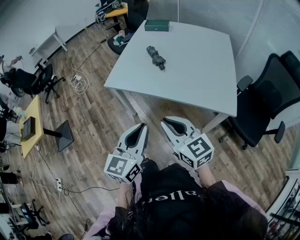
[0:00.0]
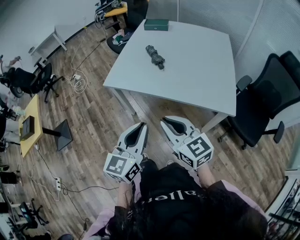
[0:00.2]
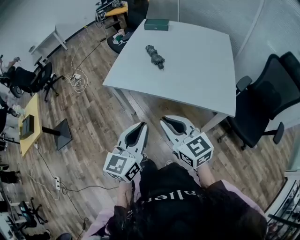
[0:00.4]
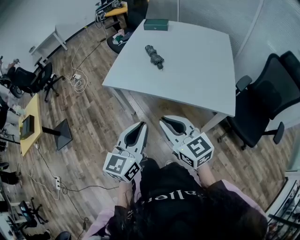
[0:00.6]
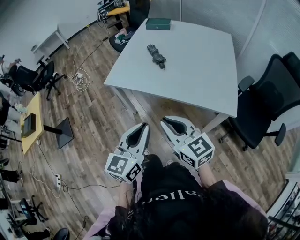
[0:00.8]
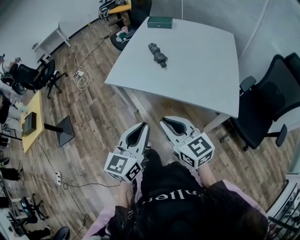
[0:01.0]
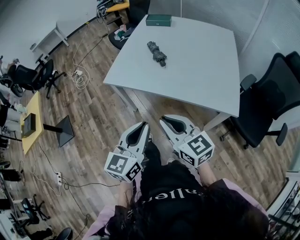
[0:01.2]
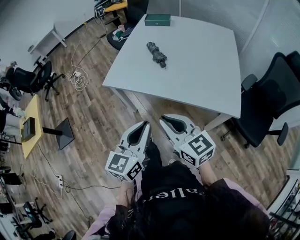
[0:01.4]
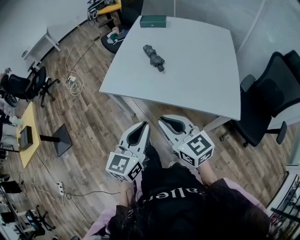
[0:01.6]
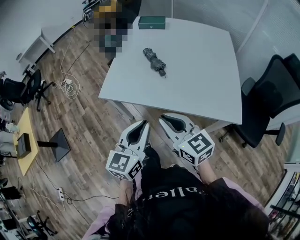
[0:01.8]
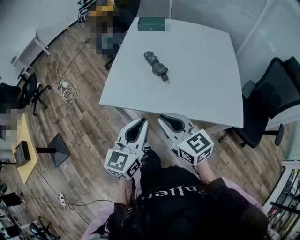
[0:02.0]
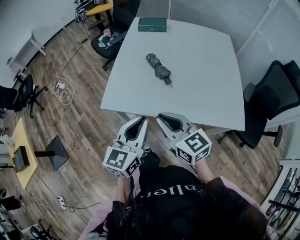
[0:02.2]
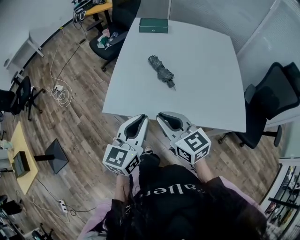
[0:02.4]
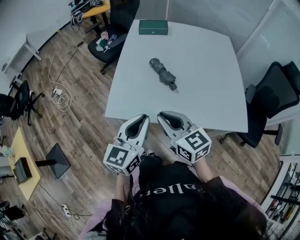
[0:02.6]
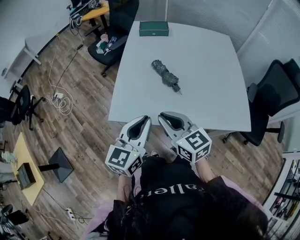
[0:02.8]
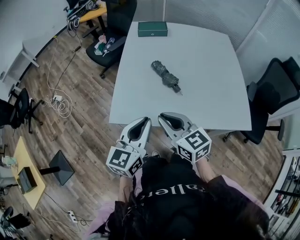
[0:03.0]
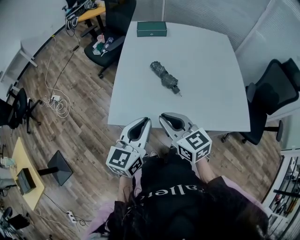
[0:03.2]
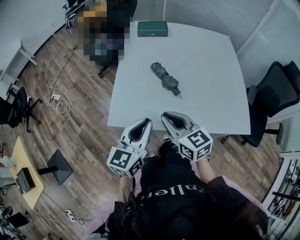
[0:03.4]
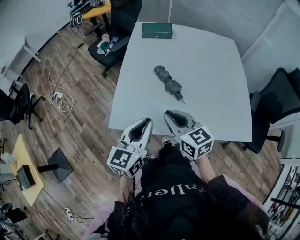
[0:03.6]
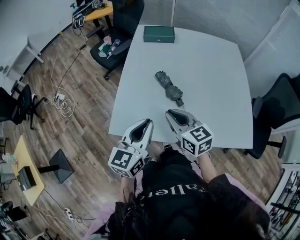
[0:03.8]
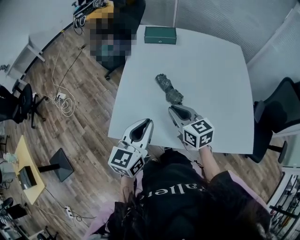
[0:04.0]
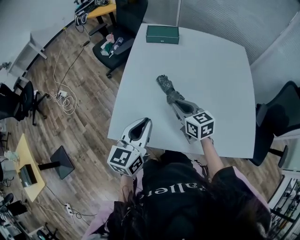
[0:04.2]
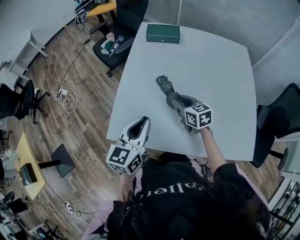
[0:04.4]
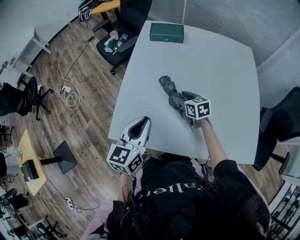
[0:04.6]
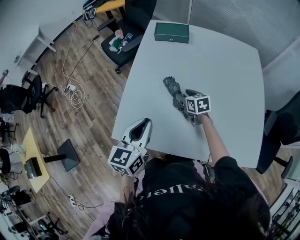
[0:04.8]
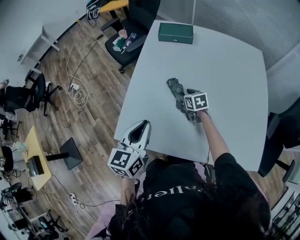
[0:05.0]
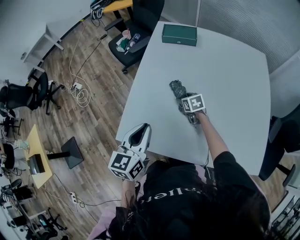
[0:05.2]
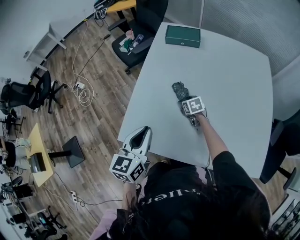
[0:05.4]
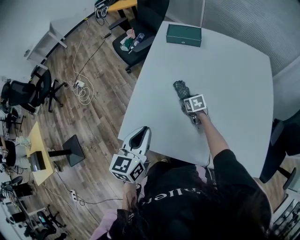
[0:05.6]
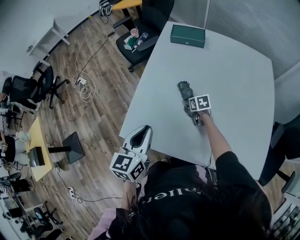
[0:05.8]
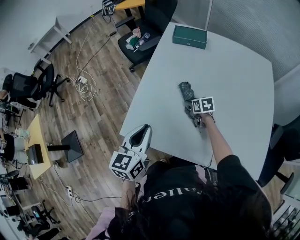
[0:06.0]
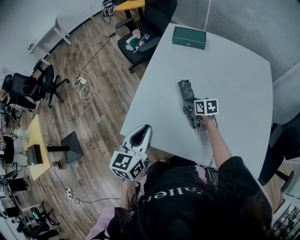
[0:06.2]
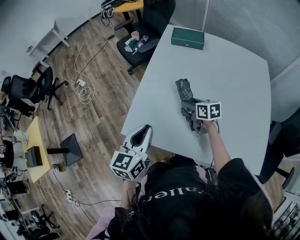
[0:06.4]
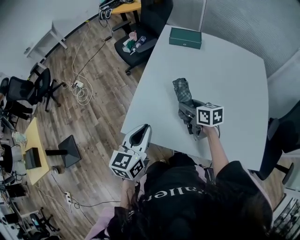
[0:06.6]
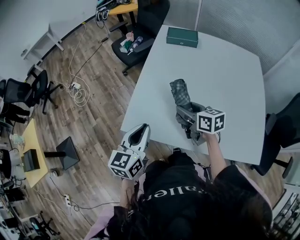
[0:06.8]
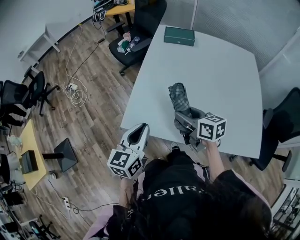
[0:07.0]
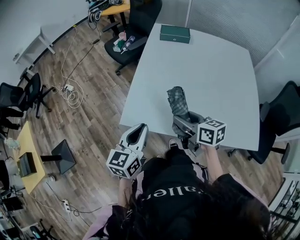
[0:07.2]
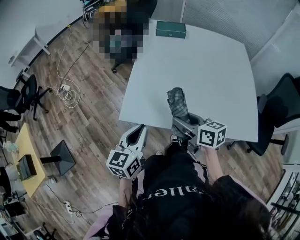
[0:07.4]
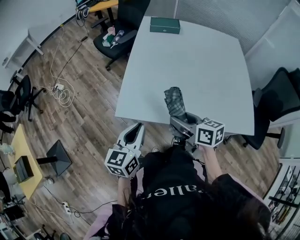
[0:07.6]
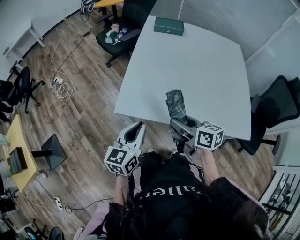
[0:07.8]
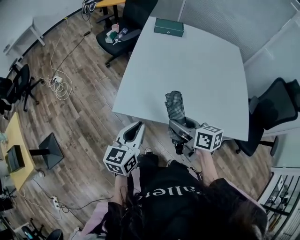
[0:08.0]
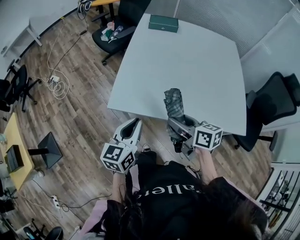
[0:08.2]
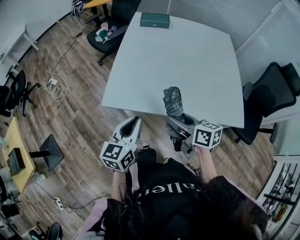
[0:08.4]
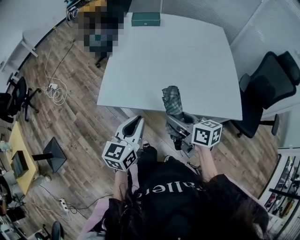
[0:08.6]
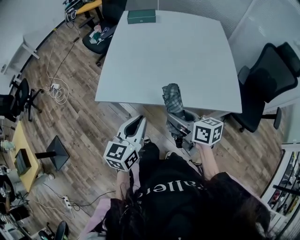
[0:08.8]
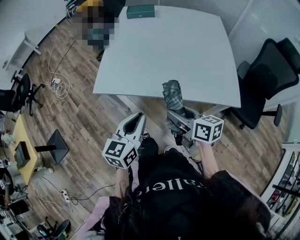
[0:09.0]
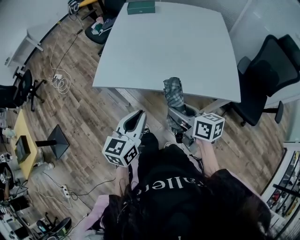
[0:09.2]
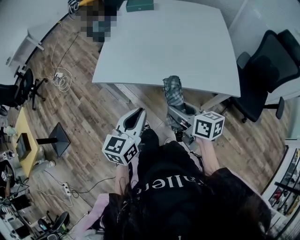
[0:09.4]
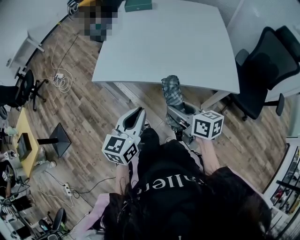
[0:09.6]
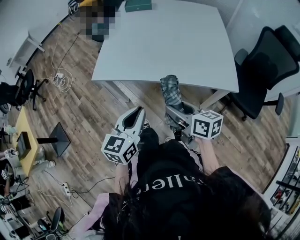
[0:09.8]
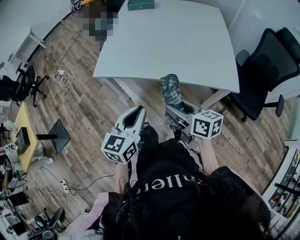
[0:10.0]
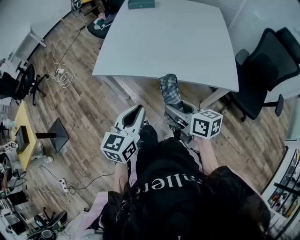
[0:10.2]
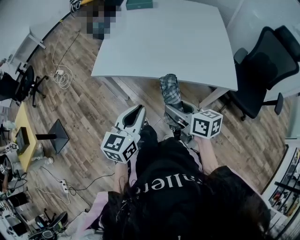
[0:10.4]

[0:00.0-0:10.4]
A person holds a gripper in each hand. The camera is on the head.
0:00.0 to 0:01.4: The grippers make only small movements.
0:01.4 to 0:03.0: The grippers both shift forward and to the left by roughly 30 cm.
0:03.0 to 0:04.4: The left gripper is displaced forward by approximately 15 cm, while the right gripper is displaced forward, downward and to the right by roughly 30 cm.
0:04.4 to 0:06.0: The left gripper travels to the left by about 5 cm. The right gripper moves downward and forward, roughly 15 cm, turns by some 20 degrees, and opens.
0:06.0 to 0:07.4: The left gripper shifts some 15 cm backward and to the left; the right gripper shifts roughly 35 cm backward, upward and to the left, and turns by roughly 30 degrees.
0:07.4 to 0:09.0: The grippers both shift backward and to the right by about 25 cm.
0:09.0 to 0:10.4: Both grippers travel together backward, some 10 cm.

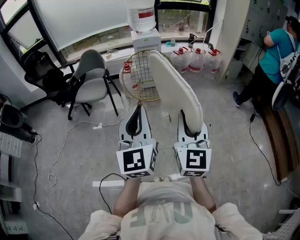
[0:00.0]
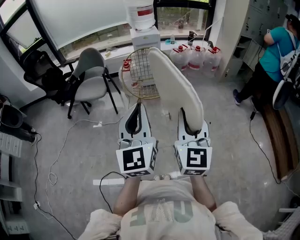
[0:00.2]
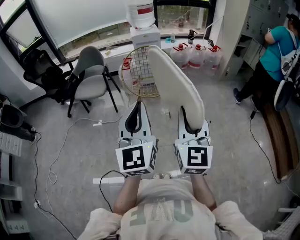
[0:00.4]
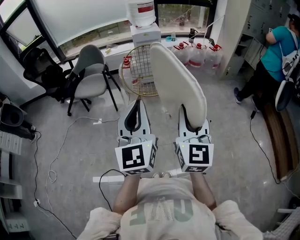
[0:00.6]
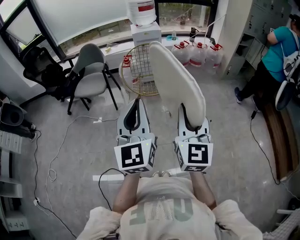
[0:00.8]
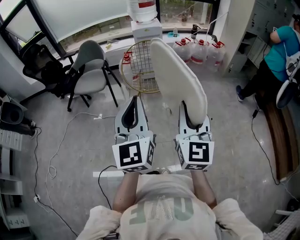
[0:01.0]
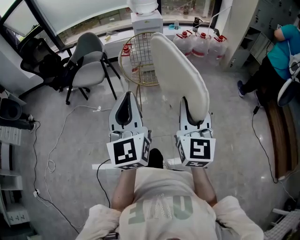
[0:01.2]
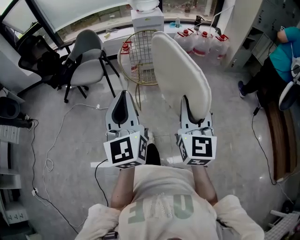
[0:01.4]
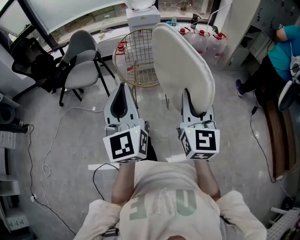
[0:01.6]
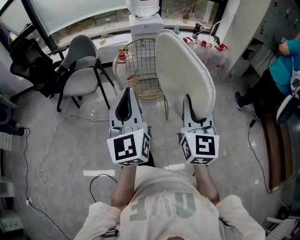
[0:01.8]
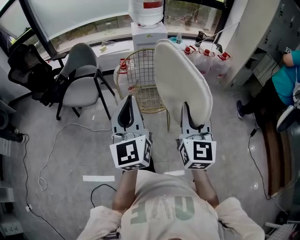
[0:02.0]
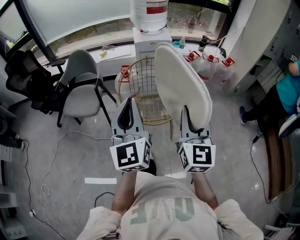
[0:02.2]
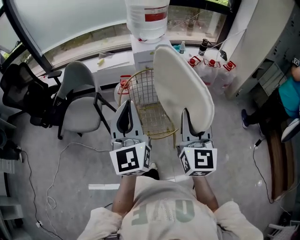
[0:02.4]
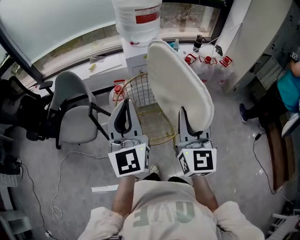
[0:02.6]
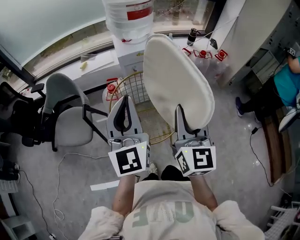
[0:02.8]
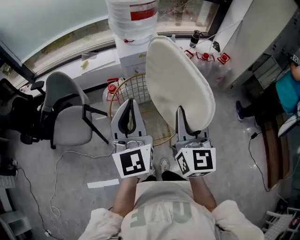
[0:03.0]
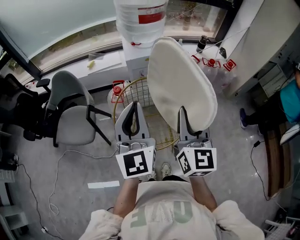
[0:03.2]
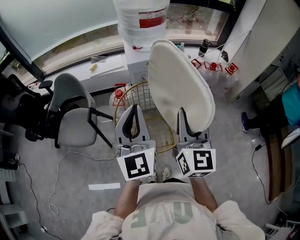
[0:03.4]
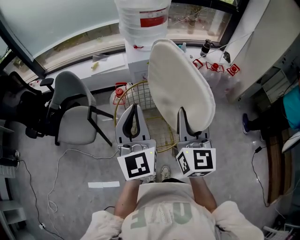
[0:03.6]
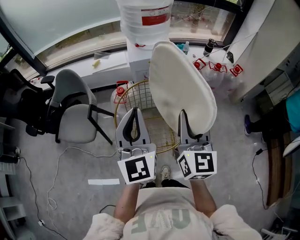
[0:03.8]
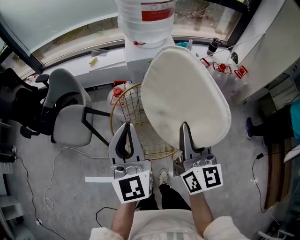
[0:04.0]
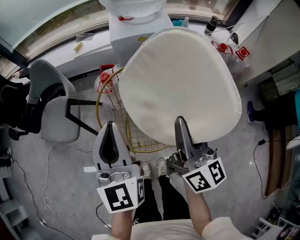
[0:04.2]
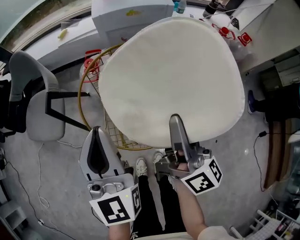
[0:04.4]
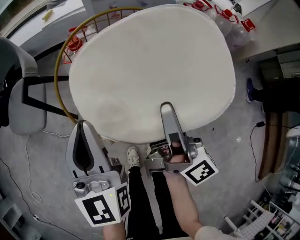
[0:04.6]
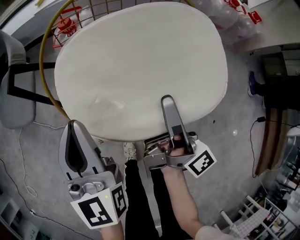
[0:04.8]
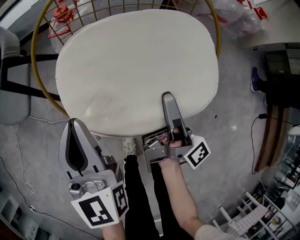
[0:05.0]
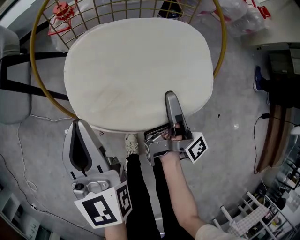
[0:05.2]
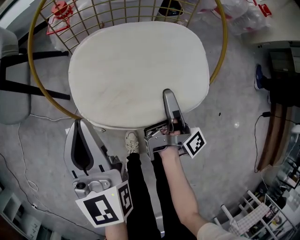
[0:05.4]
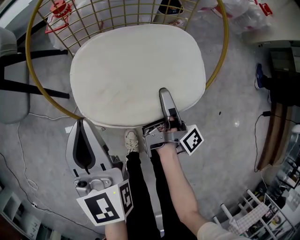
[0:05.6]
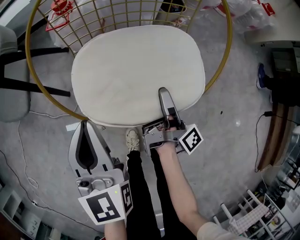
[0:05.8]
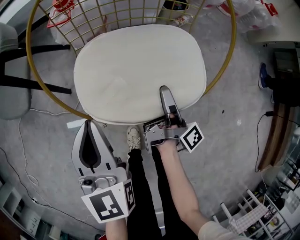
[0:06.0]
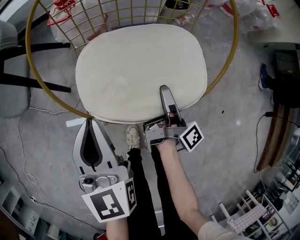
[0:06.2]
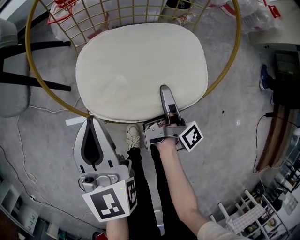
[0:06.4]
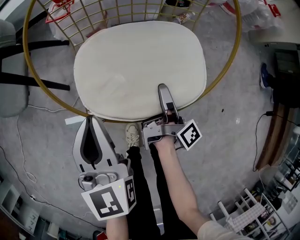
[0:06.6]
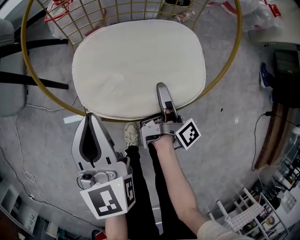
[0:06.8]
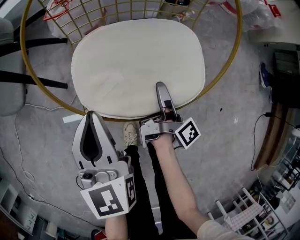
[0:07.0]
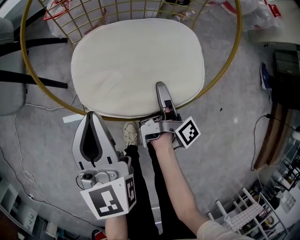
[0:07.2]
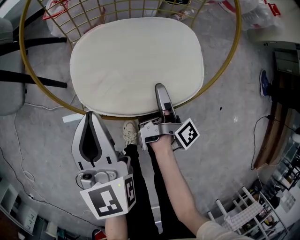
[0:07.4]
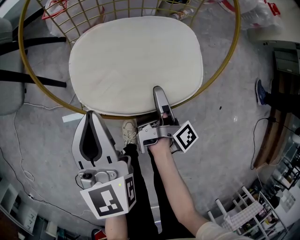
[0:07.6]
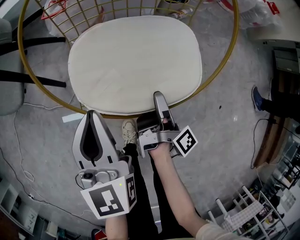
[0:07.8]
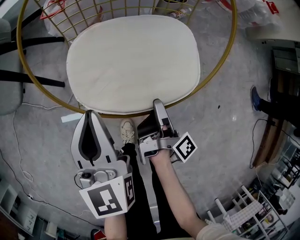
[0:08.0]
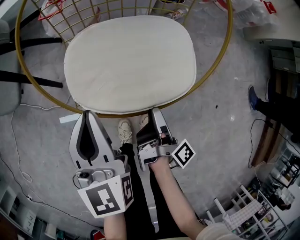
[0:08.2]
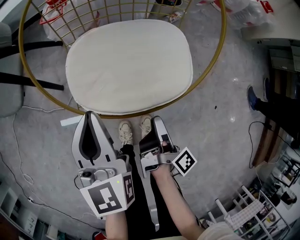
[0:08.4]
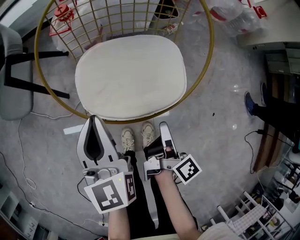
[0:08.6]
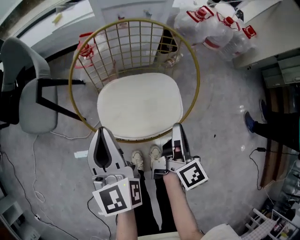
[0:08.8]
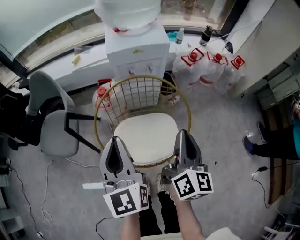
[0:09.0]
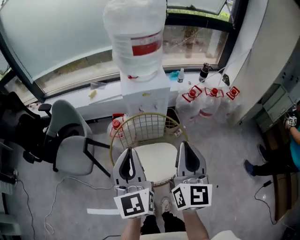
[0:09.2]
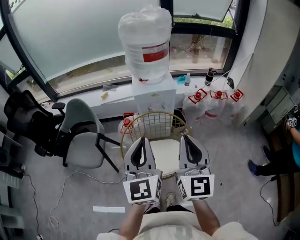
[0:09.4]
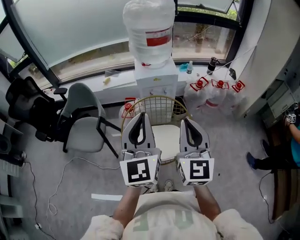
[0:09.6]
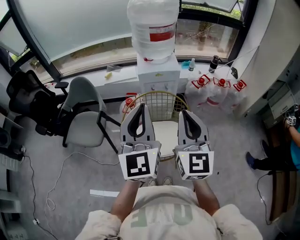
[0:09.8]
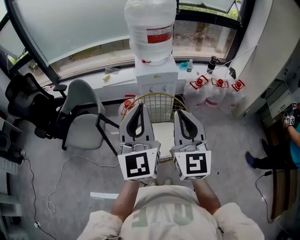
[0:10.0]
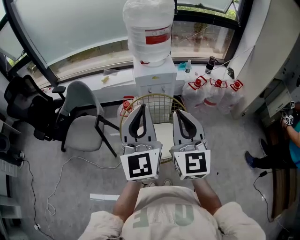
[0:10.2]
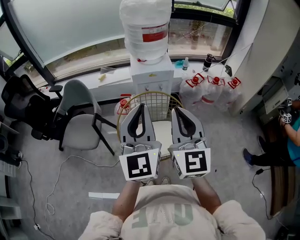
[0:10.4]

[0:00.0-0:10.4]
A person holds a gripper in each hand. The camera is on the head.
0:00.0 to 0:01.4: The grippers both shift forward by approximately 5 cm.
0:01.4 to 0:03.0: Both grippers are carried forward, approximately 50 cm.
0:03.0 to 0:04.4: The two grippers go roughly 20 cm downward. The right gripper twists roughly 40 degrees clockwise, seen from behind.
0:04.4 to 0:06.0: The grippers both shift downward by about 30 cm. The right gripper rotates around the line of its fingers by roughly 50 degrees, clockwise from behind. Meanwhile the left gripper changes its angle by about 20 degrees.
0:06.0 to 0:07.4: The right gripper opens.
0:07.4 to 0:09.0: The two grippers go some 35 cm upward. The right gripper rotates around the line of its fingers by some 70 degrees, counterclockwise from behind, and closes. The left gripper turns by approximately 20 degrees.
0:09.0 to 0:10.4: The grippers both shift upward by about 25 cm. The left gripper turns by roughly 20 degrees. Meanwhile the right gripper changes its angle by some 40 degrees.

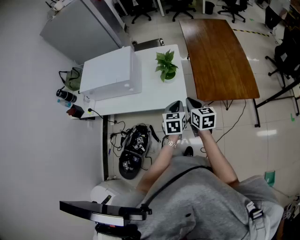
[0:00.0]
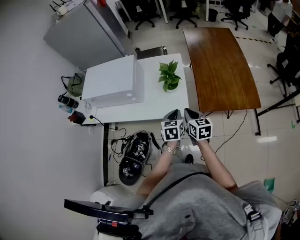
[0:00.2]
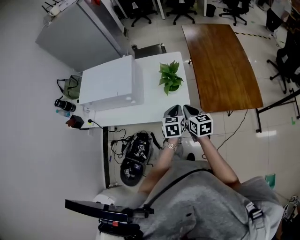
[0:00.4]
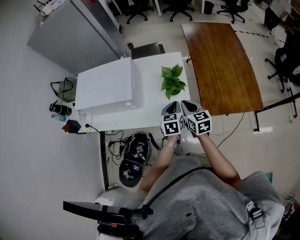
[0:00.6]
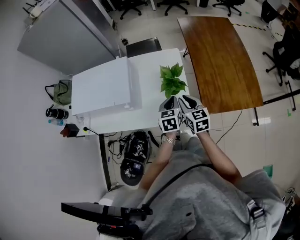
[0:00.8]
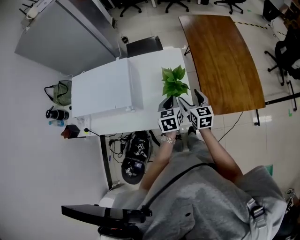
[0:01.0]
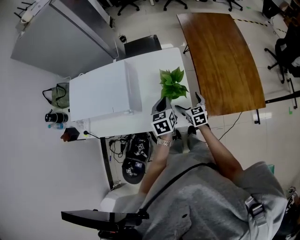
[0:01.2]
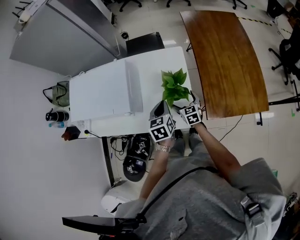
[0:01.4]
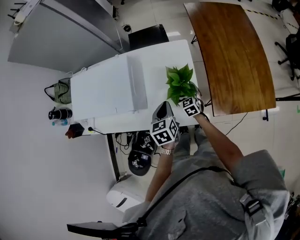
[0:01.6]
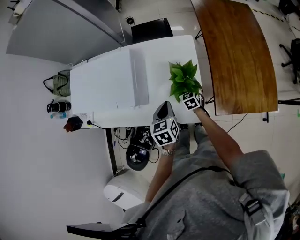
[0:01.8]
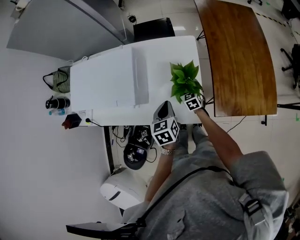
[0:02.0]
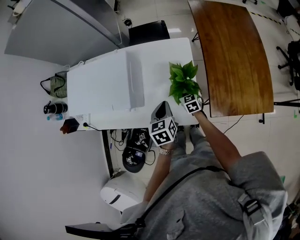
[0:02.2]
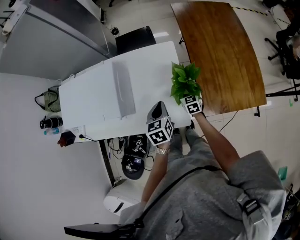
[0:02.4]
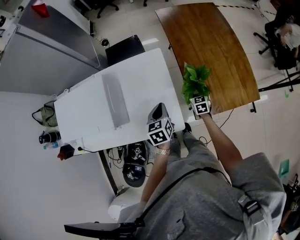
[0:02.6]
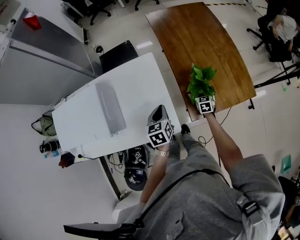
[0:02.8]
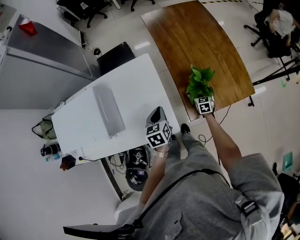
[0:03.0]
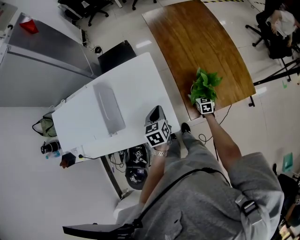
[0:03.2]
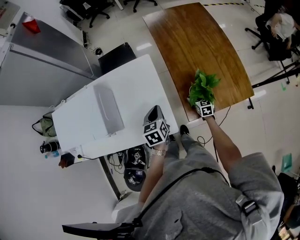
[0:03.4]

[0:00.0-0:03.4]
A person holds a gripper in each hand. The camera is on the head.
0:00.0 to 0:01.6: The left gripper shifts about 25 cm forward and to the left. The right gripper moves forward and downward, some 35 cm, changes its angle by some 20 degrees, and opens its fingers.
0:01.6 to 0:03.4: The left gripper ends up approximately 15 cm from where it was. Meanwhile the right gripper ends up about 35 cm from where it was, and swivels about 30 degrees.
